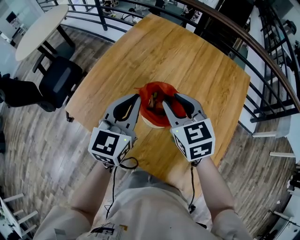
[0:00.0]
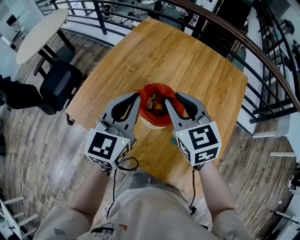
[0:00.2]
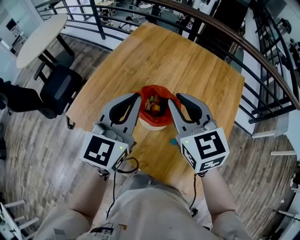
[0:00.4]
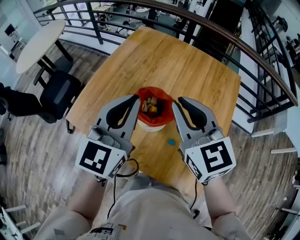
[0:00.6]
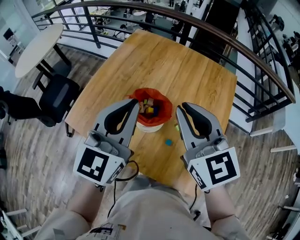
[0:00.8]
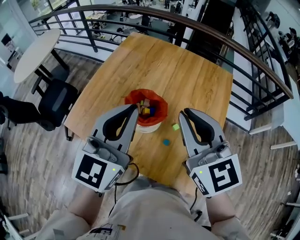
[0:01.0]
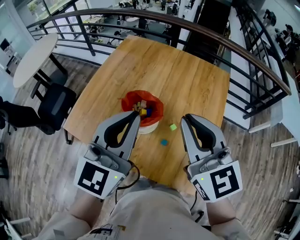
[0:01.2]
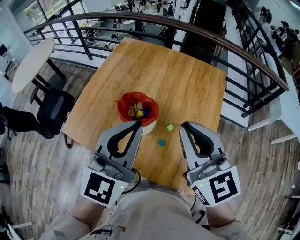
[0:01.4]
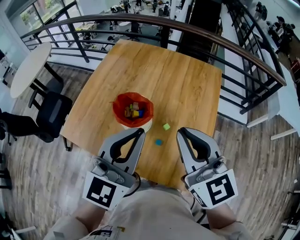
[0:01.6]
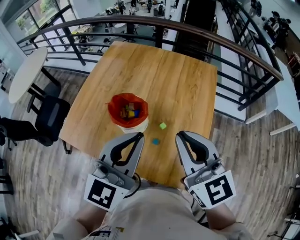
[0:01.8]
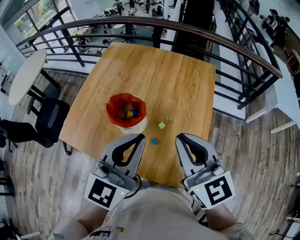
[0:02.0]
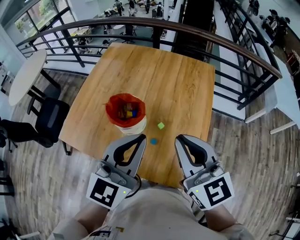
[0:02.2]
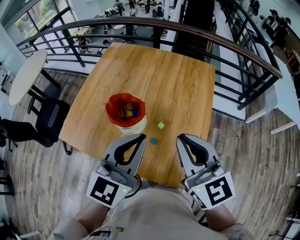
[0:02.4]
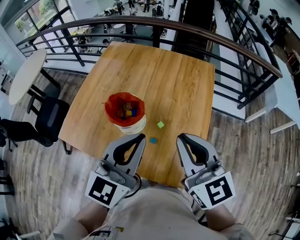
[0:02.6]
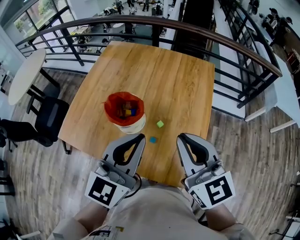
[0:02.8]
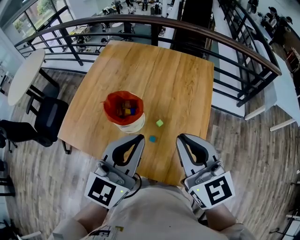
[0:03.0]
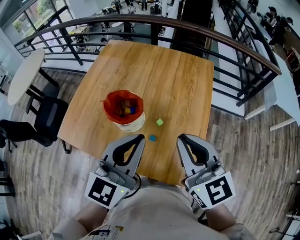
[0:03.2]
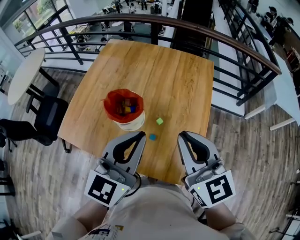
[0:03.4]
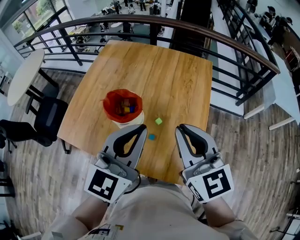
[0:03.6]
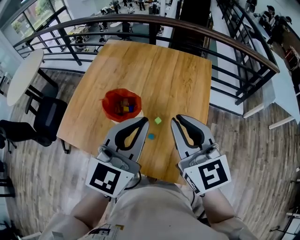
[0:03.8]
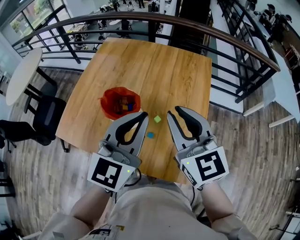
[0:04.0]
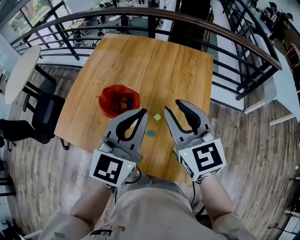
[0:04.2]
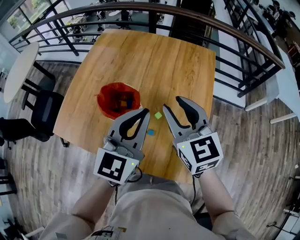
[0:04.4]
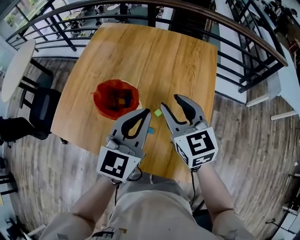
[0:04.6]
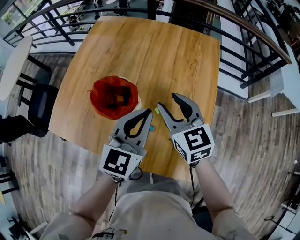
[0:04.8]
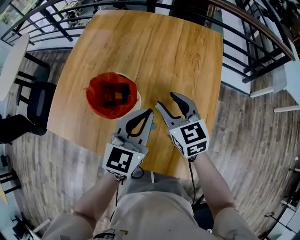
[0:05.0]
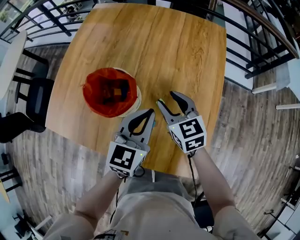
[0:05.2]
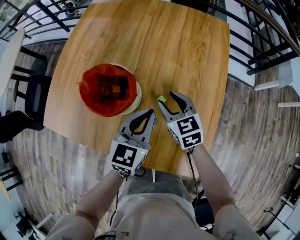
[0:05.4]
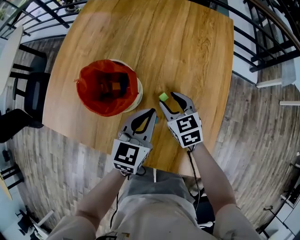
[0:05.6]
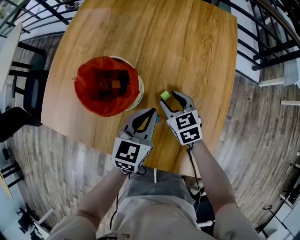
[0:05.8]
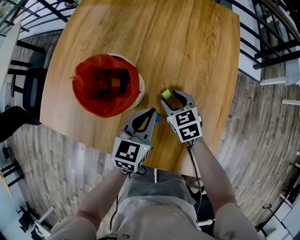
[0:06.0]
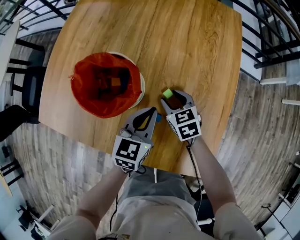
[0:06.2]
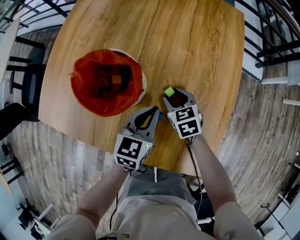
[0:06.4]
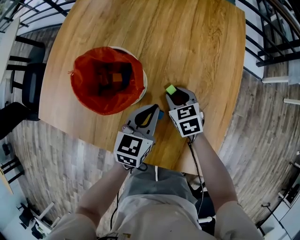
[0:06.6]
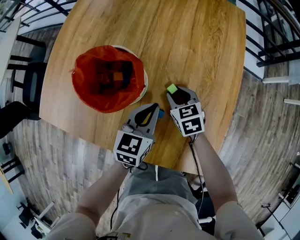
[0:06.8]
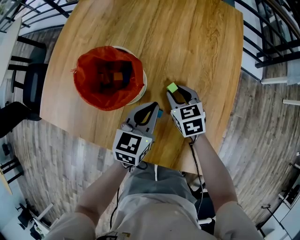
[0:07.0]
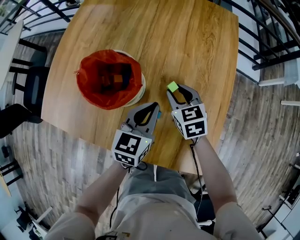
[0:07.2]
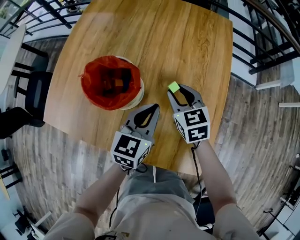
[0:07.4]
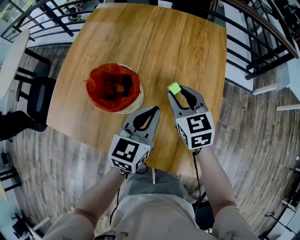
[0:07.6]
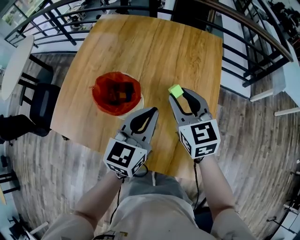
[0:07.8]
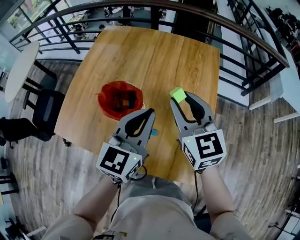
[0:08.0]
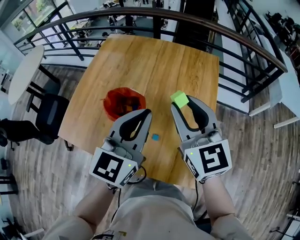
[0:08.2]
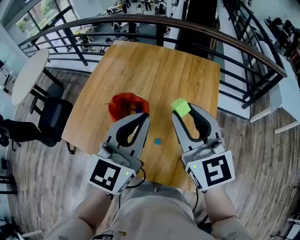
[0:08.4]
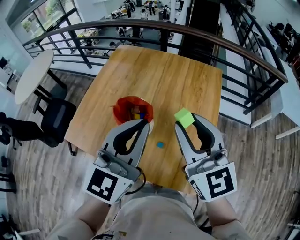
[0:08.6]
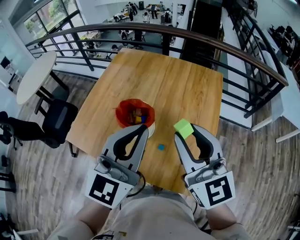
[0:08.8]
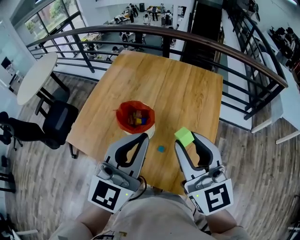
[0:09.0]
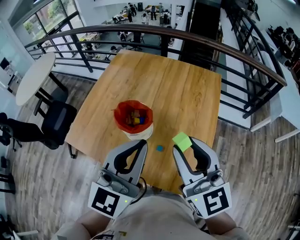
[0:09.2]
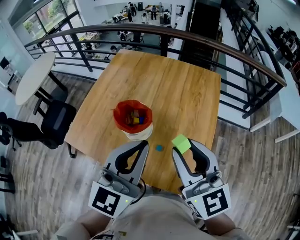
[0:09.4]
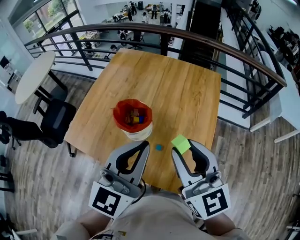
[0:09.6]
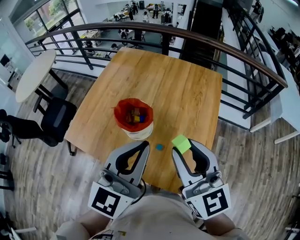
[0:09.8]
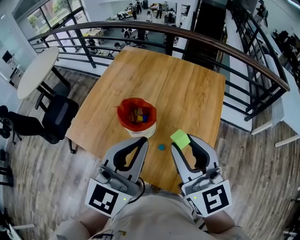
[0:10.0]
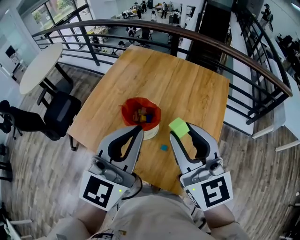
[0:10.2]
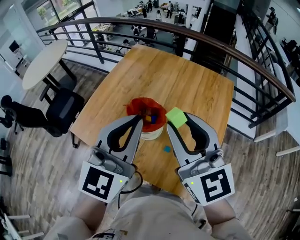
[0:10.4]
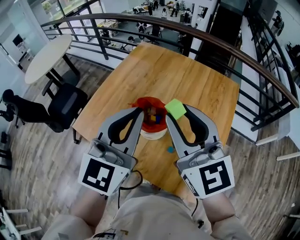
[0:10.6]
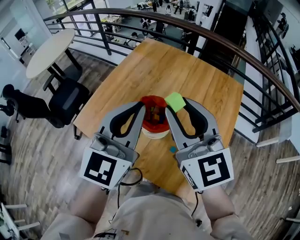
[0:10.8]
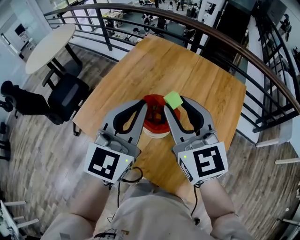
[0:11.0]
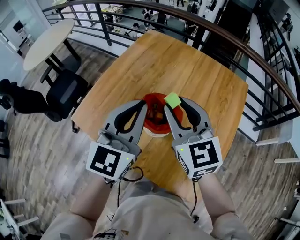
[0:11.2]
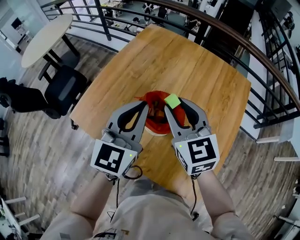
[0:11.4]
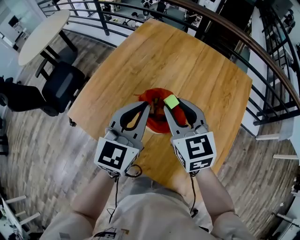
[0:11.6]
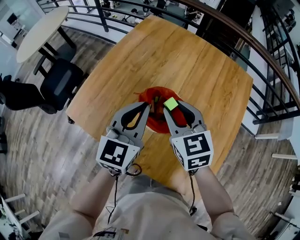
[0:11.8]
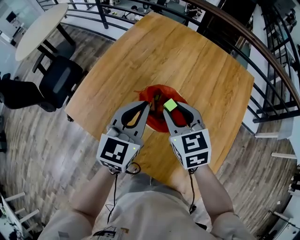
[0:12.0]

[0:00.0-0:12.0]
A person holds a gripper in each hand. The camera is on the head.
0:00.0 to 0:01.6: Both grippers travel together backward, upward and to the right, roughly 25 cm. The left gripper swivels about 20 degrees; the right gripper changes its angle by approximately 20 degrees, and closes up.
0:01.6 to 0:03.0: The left gripper shifts by roughly 5 cm. The right gripper moves some 5 cm.
0:03.0 to 0:04.4: The left gripper shifts some 10 cm forward, while the right gripper travels forward and downward by about 10 cm, and opens up.
0:04.4 to 0:06.0: The two grippers go roughly 35 cm downward. The left gripper rotates roughly 30 degrees. The right gripper tilts its fingers roughly 30 degrees downward.
0:06.0 to 0:07.6: The right gripper travels upward by some 20 cm. The left gripper travels upward by roughly 10 cm.
0:07.6 to 0:09.0: The grippers both shift upward and backward by approximately 30 cm. The left gripper turns by approximately 30 degrees. The right gripper turns by roughly 30 degrees.
0:09.0 to 0:10.4: The grippers both shift to the left by approximately 5 cm.
0:10.4 to 0:12.0: Both grippers travel together downward and forward, approximately 25 cm. The right gripper points its fingers about 30 degrees further downward.

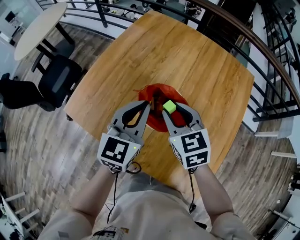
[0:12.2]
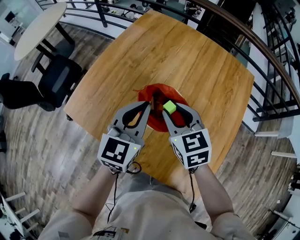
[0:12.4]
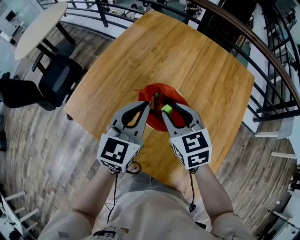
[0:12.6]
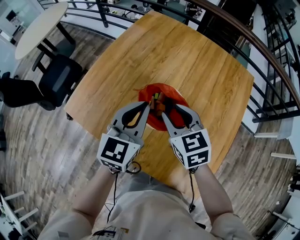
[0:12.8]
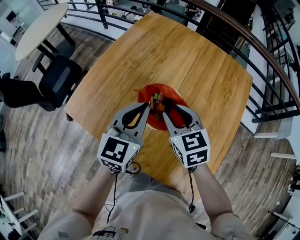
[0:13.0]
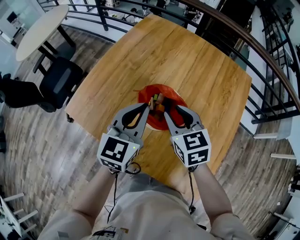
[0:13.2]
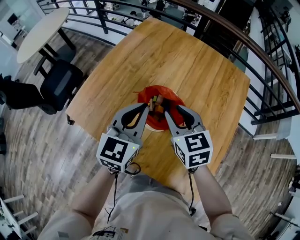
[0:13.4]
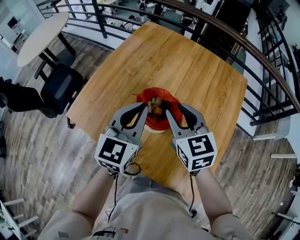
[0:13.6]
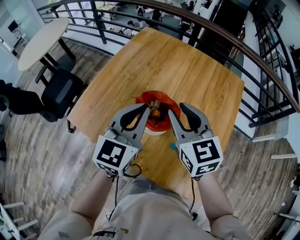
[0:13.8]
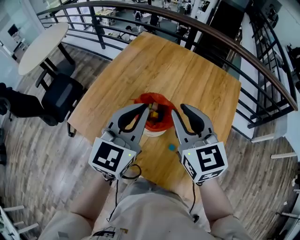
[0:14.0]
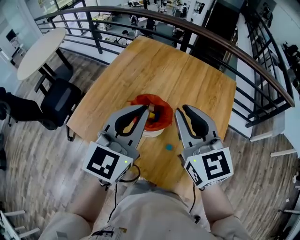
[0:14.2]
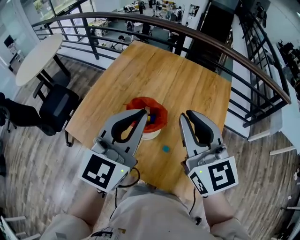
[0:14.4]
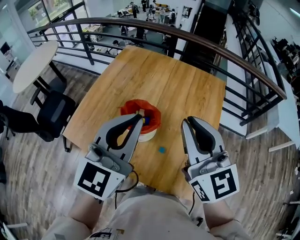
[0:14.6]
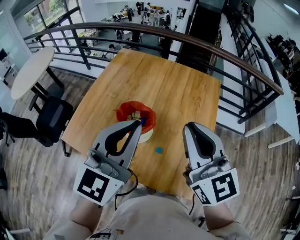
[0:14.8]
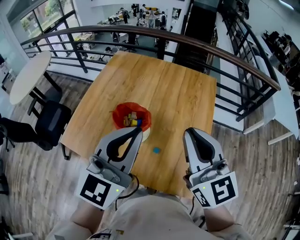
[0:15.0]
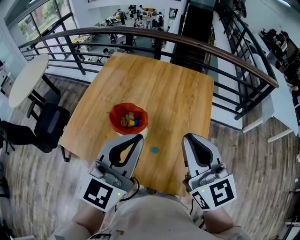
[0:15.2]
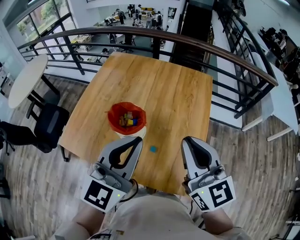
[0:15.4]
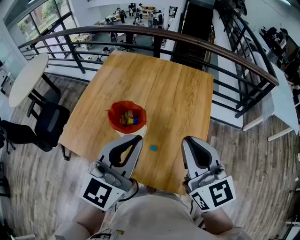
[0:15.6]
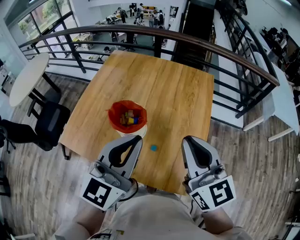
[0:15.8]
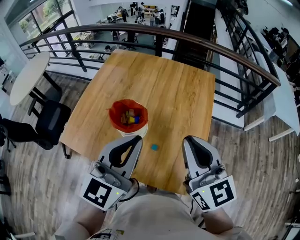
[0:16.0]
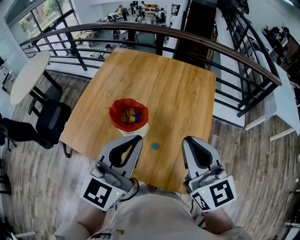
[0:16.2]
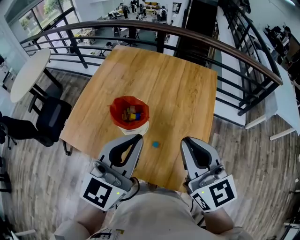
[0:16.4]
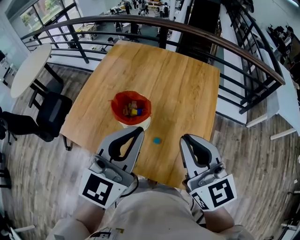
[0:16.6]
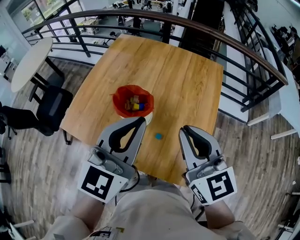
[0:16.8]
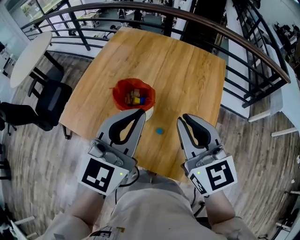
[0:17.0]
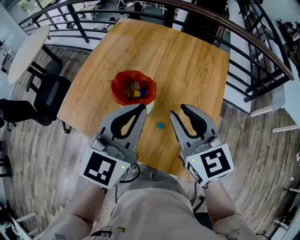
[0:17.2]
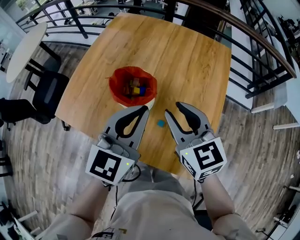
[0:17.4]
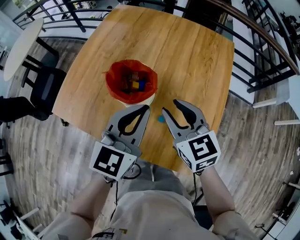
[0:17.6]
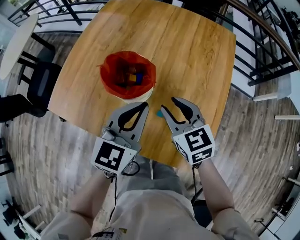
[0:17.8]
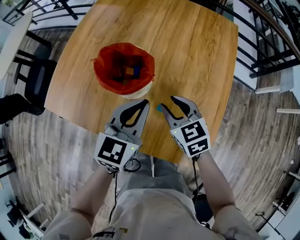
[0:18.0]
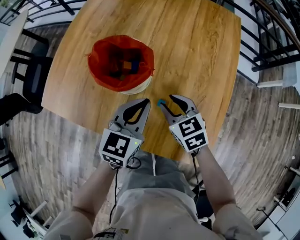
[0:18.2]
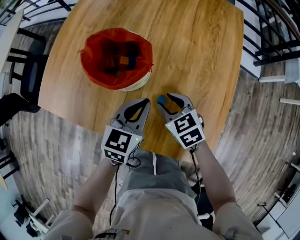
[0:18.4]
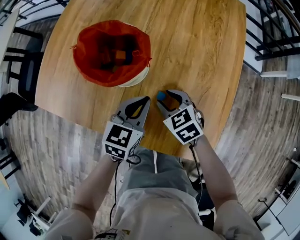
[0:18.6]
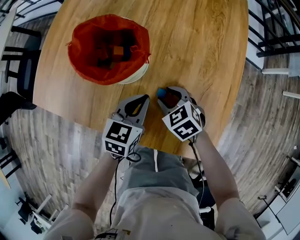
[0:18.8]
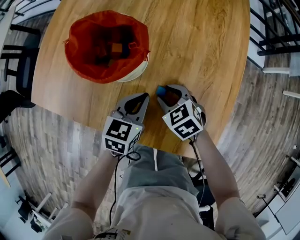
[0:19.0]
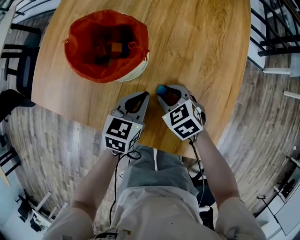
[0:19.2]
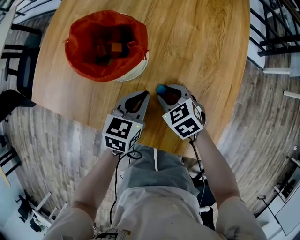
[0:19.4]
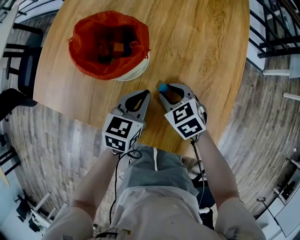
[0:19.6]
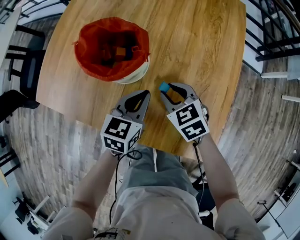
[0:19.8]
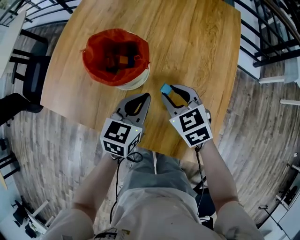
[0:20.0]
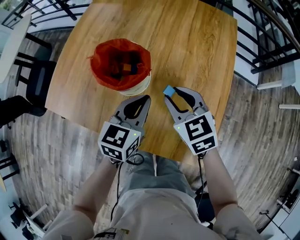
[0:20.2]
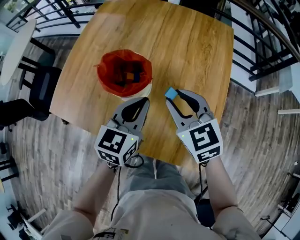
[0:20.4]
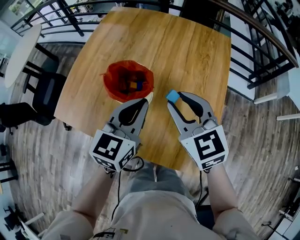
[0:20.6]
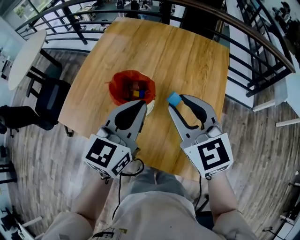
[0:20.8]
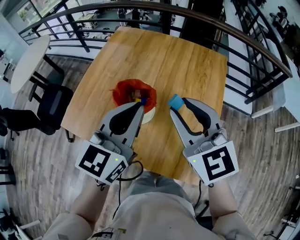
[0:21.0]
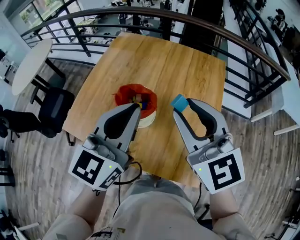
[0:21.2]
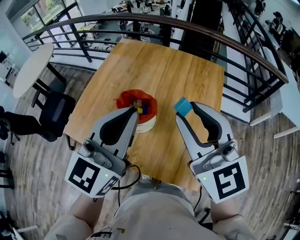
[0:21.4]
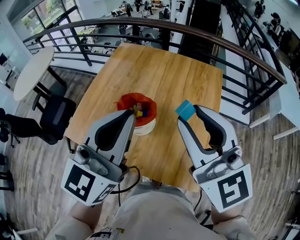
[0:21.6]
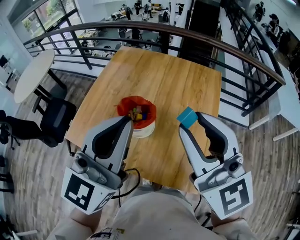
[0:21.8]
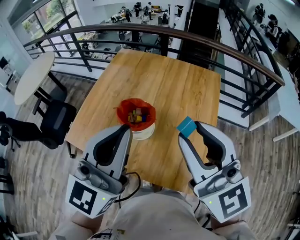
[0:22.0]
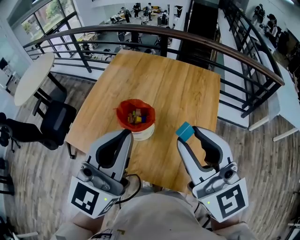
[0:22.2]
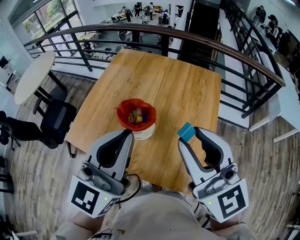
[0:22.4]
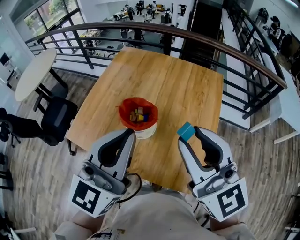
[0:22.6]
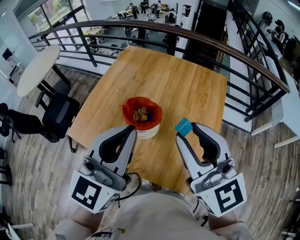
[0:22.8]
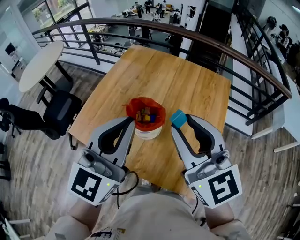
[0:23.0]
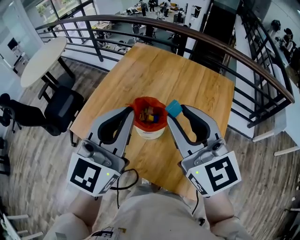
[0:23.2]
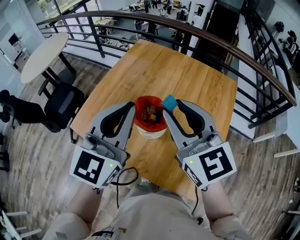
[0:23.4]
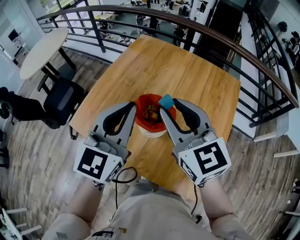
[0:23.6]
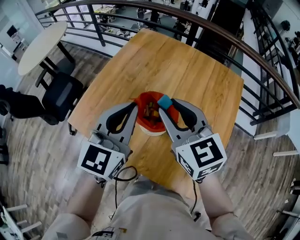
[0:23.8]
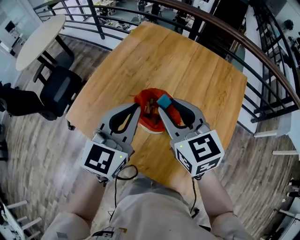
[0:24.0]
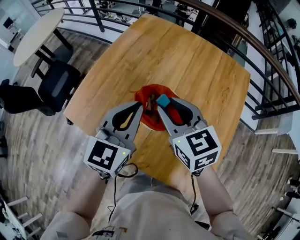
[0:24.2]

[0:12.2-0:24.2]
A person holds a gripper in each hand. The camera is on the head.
0:12.2 to 0:13.8: The grippers both shift upward by some 10 cm.
0:13.8 to 0:15.2: The right gripper heads to the right, backward and upward, covering about 25 cm, rotates approximately 20 degrees, and closes up, while the left gripper heads backward, to the right and upward, covering about 20 cm.
0:15.2 to 0:16.6: The grippers move only a little.
0:16.6 to 0:18.2: The grippers both shift downward by some 35 cm. The right gripper points its fingers about 40 degrees further downward, and opens. The left gripper turns by roughly 30 degrees.
0:18.2 to 0:19.8: The left gripper goes roughly 10 cm downward.
0:19.8 to 0:21.2: The two grippers go roughly 40 cm upward. The right gripper tips its fingers upward by approximately 40 degrees. The left gripper tilts its fingers roughly 30 degrees upward.
0:21.2 to 0:22.6: Both grippers move backward and upward, some 10 cm.
0:22.6 to 0:24.2: The left gripper travels downward and forward by approximately 25 cm, and swivels some 20 degrees; the right gripper moves downward, forward and to the left, about 30 cm, and swivels roughly 30 degrees.
